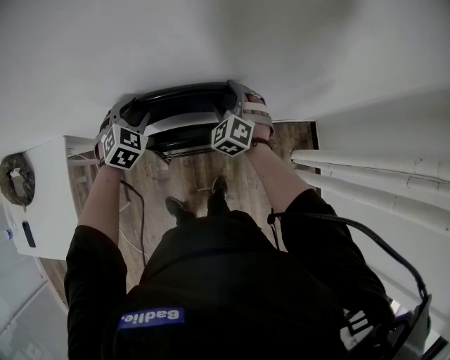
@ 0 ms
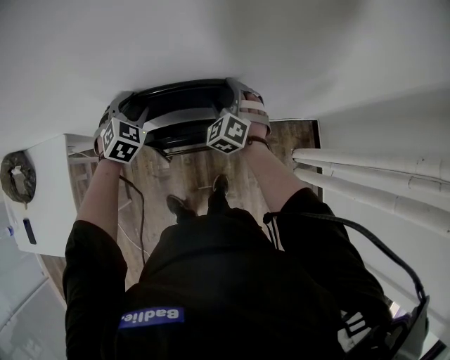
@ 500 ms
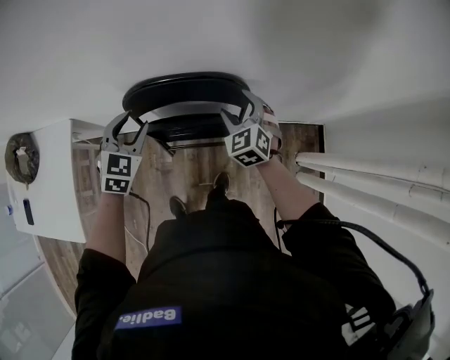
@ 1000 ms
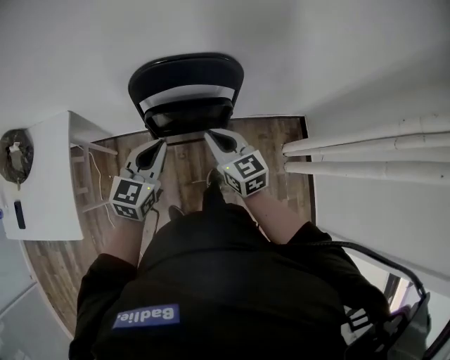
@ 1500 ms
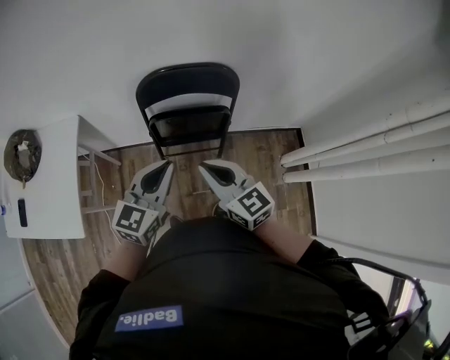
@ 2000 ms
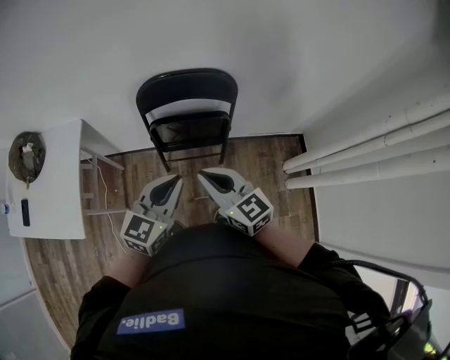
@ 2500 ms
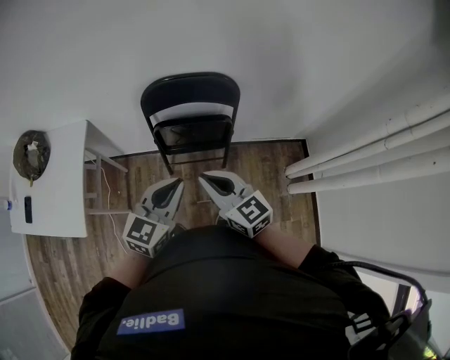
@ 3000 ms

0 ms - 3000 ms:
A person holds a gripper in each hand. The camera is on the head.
0 ms - 1500 ms: The grippers both shift backward by approximately 30 cm. The right gripper rotates around the line of its fingers by some 50 degrees, clockwise from behind, and closes; the left gripper swivels roughly 50 degrees, and closes its fingers.
1500 ms - 3000 ms: Both grippers travel together backward and upward, approximately 20 cm.

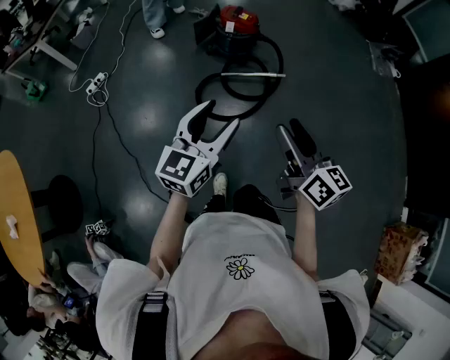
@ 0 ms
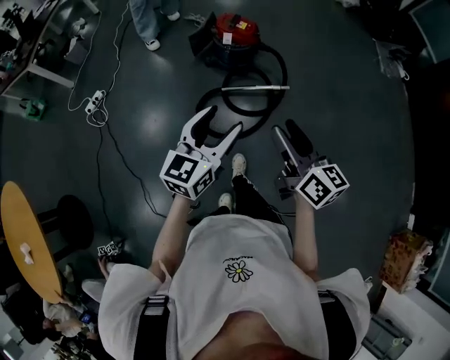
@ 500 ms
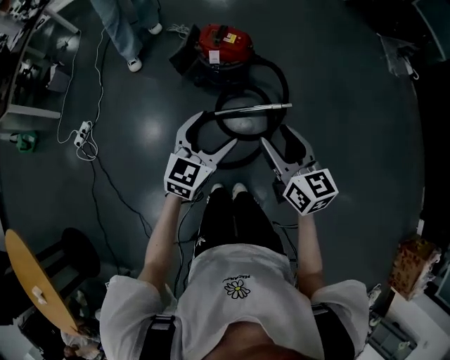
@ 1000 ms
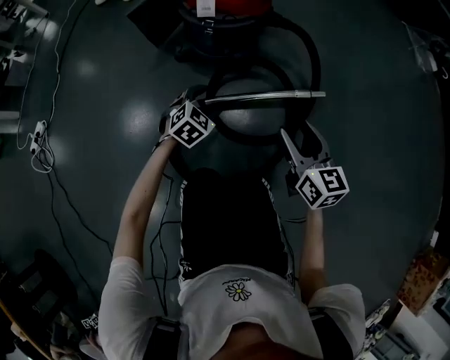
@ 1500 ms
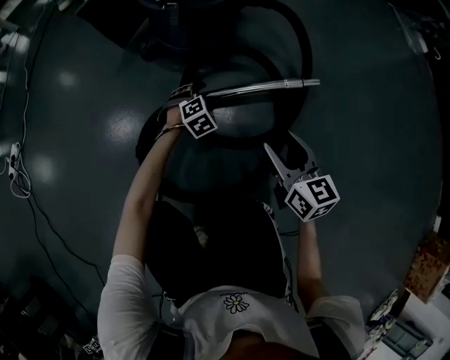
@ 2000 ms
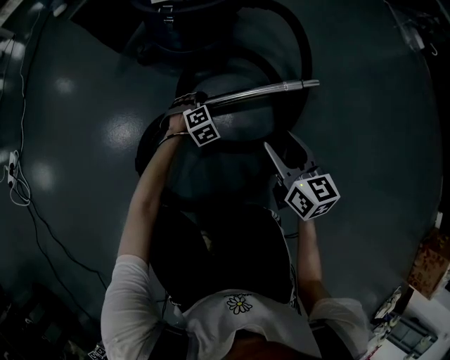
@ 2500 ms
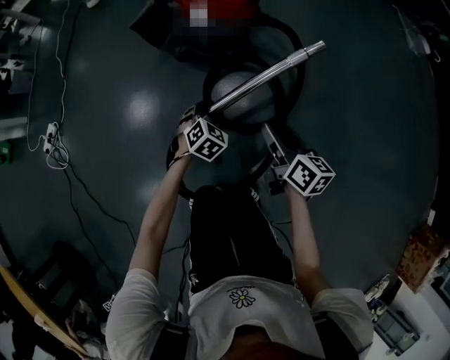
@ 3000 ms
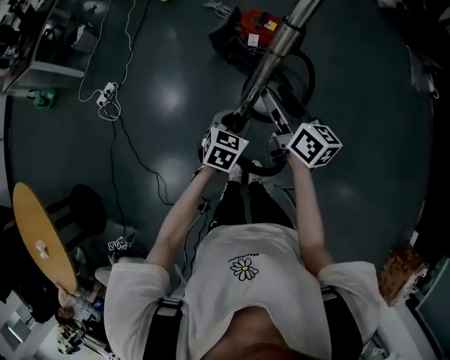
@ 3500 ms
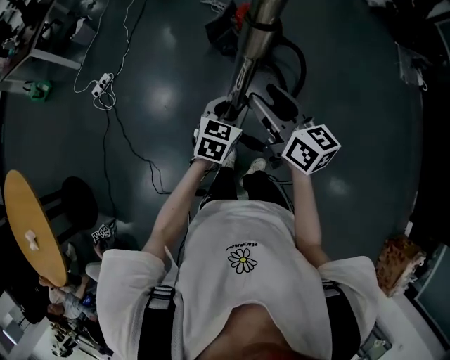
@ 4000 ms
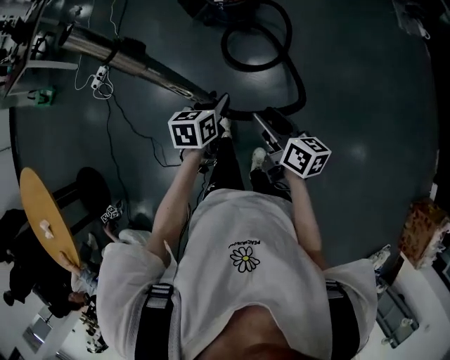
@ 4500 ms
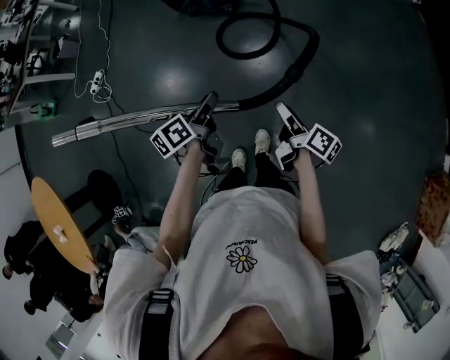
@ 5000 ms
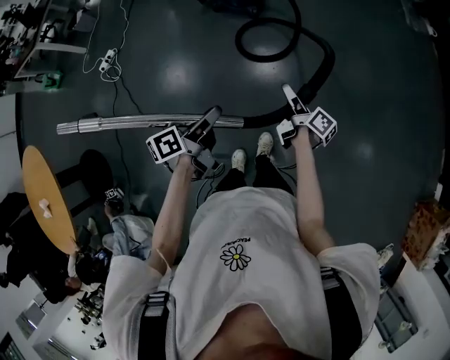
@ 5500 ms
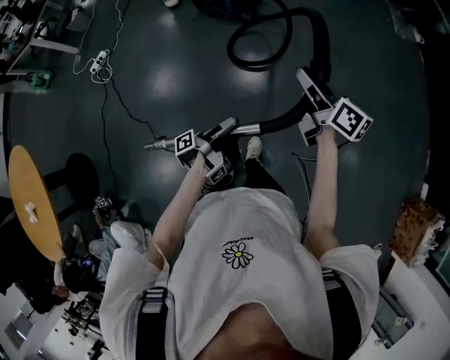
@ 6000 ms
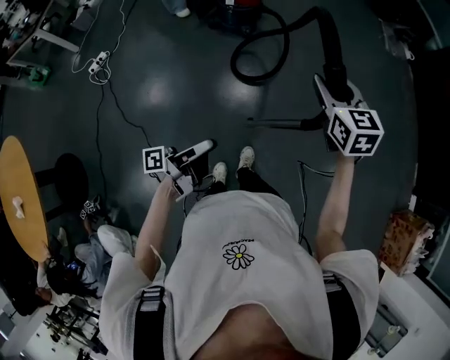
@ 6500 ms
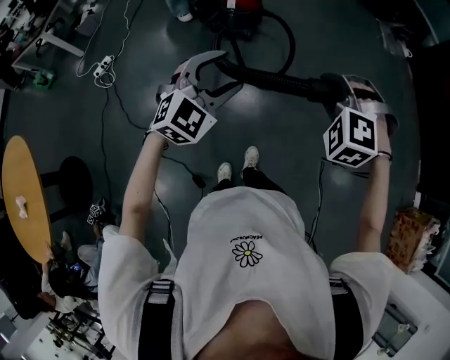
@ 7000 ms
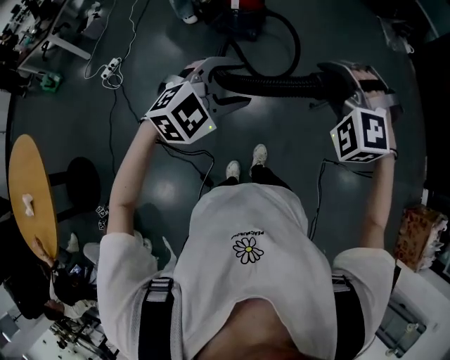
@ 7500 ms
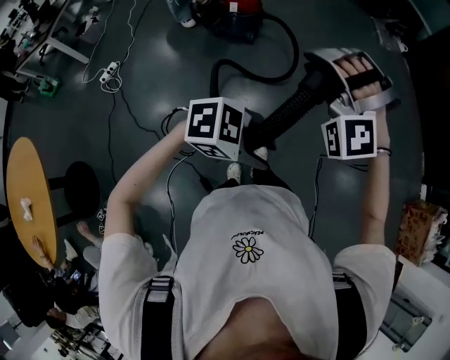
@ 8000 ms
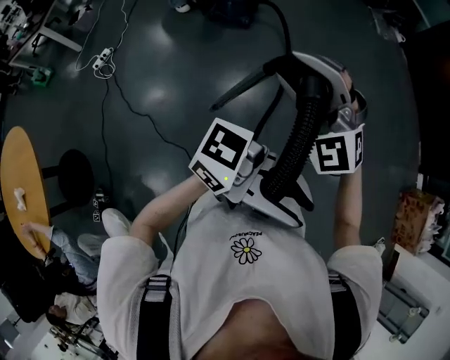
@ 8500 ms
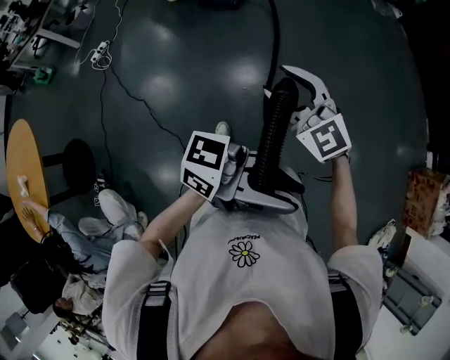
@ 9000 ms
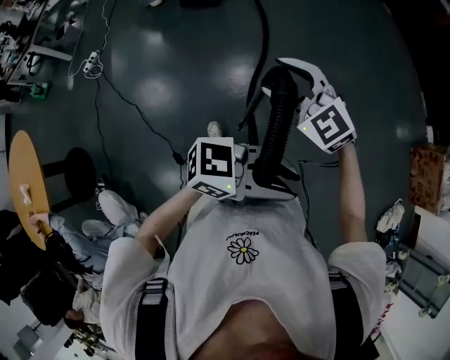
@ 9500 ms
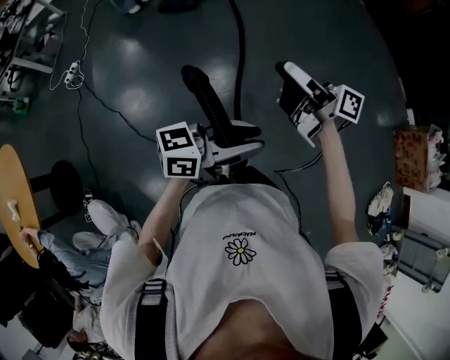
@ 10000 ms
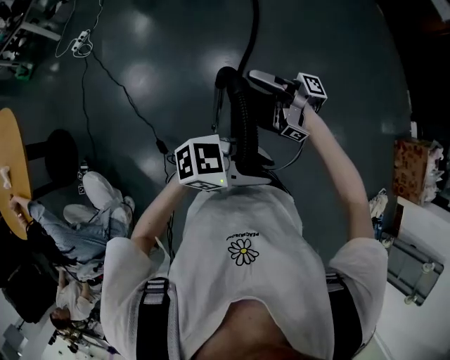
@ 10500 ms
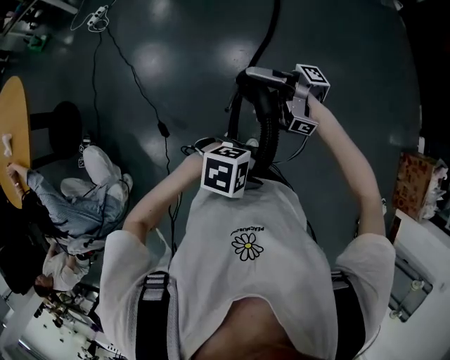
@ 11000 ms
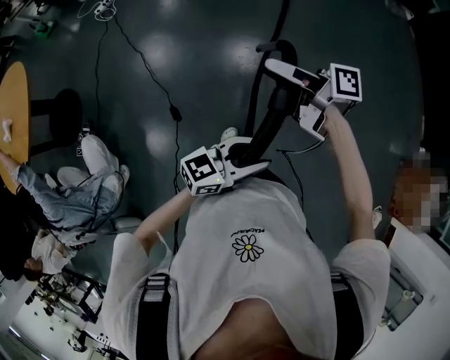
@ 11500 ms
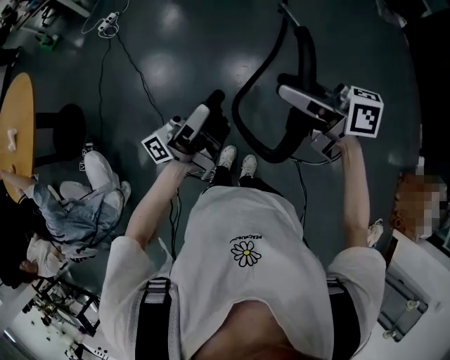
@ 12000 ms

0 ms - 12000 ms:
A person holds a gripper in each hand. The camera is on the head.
0 ms - 2000 ms: The two grippers travel together, forward, some 60 cm. Both grippers travel together downward, approximately 90 cm. The left gripper tilts its fingers approximately 50 degrees downward. The right gripper turns by some 20 degrees.
2000 ms - 4000 ms: The right gripper goes approximately 70 cm upward, and rotates some 30 degrees. Meanwhile the left gripper shifts roughly 90 cm upward and backward, twists about 50 degrees counterclockwise, seen from behind, and closes.
4000 ms - 6000 ms: The left gripper travels backward by roughly 35 cm, and rolls counterclockwise, seen from behind, by about 110 degrees; the right gripper is displaced to the right and backward by roughly 30 cm, and changes its angle by about 20 degrees.
6000 ms - 8000 ms: The left gripper travels upward by about 20 cm, and points its fingers about 30 degrees further downward; the right gripper changes place by about 25 cm, and rolls counterclockwise, seen from behind, by approximately 140 degrees.
8000 ms - 10000 ms: The left gripper moves about 15 cm upward and comes back, and tips its fingers upward by approximately 40 degrees. The right gripper changes place by roughly 40 cm, rotates around the line of its fingers by roughly 150 degrees, clockwise from behind, and opens up.
10000 ms - 12000 ms: The left gripper travels downward and back again, about 10 cm each way, and points its fingers about 40 degrees further upward. The right gripper moves approximately 10 cm downward and comes back, and turns by some 40 degrees.

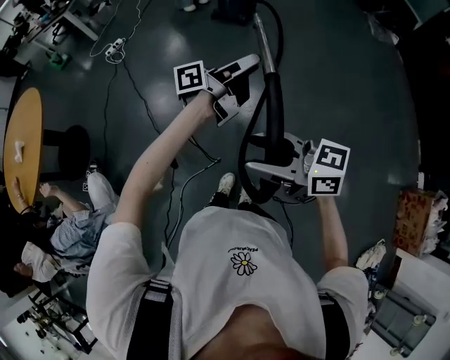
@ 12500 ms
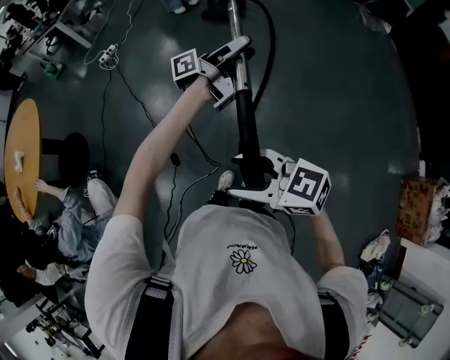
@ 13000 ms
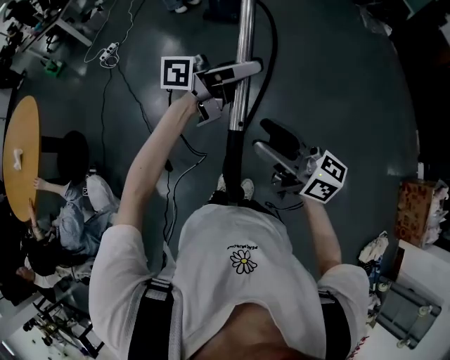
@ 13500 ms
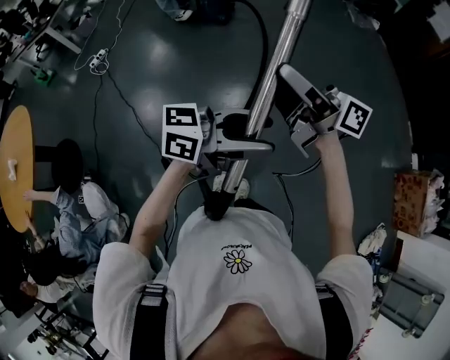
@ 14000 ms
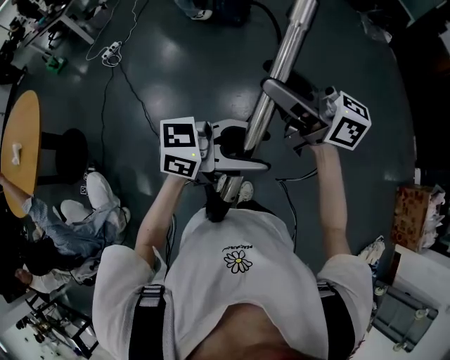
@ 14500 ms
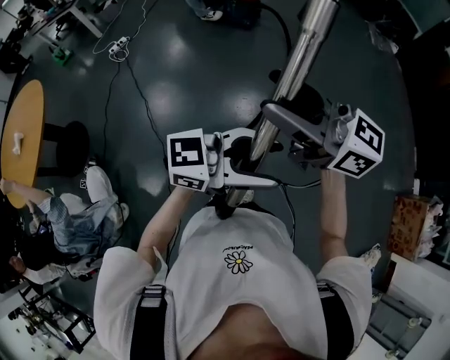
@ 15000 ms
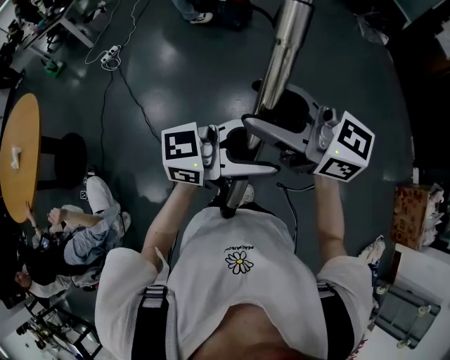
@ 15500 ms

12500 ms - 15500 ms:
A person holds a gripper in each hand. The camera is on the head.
12500 ms - 14000 ms: The right gripper moves roughly 20 cm, and turns by roughly 40 degrees, while the left gripper ends up some 25 cm from where it was, and swivels some 50 degrees.
14000 ms - 15500 ms: The right gripper moves roughly 15 cm, and rotates some 40 degrees. The left gripper shifts by about 5 cm.

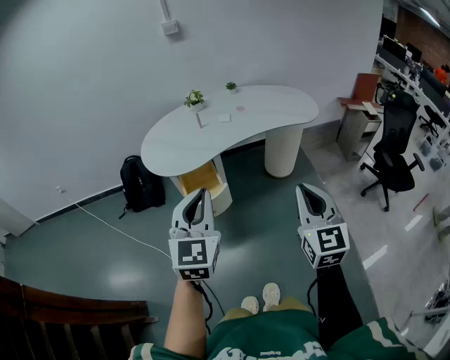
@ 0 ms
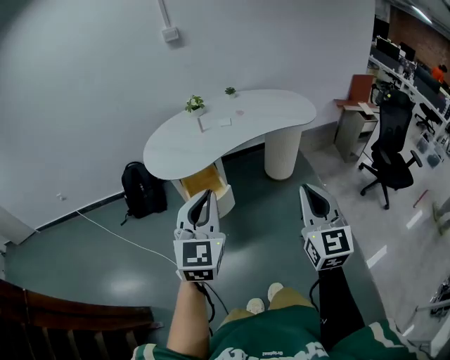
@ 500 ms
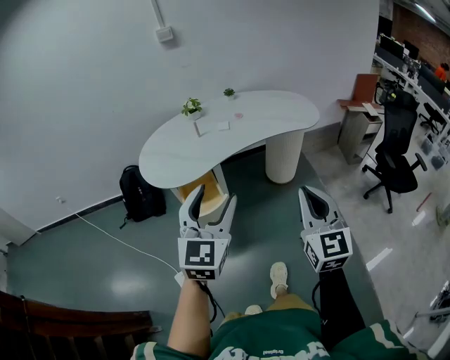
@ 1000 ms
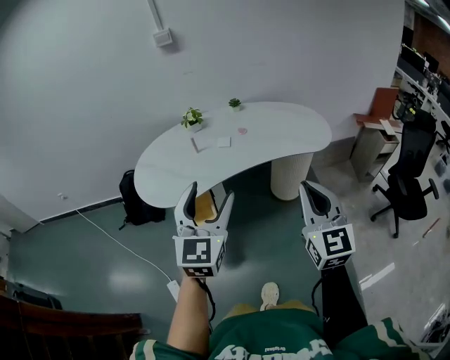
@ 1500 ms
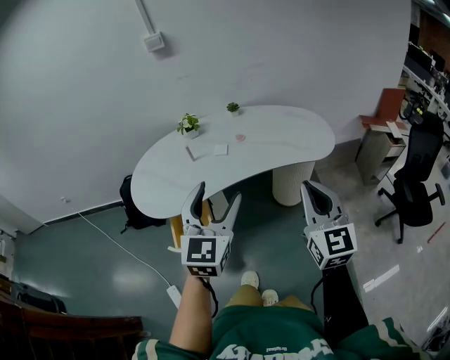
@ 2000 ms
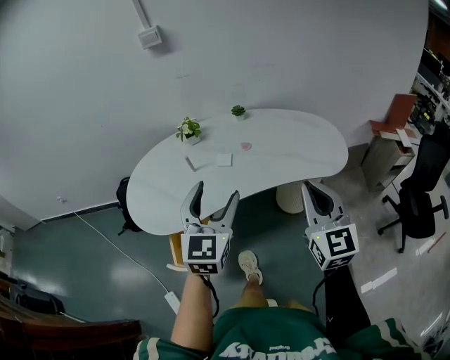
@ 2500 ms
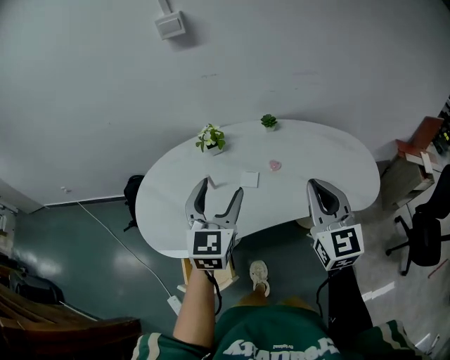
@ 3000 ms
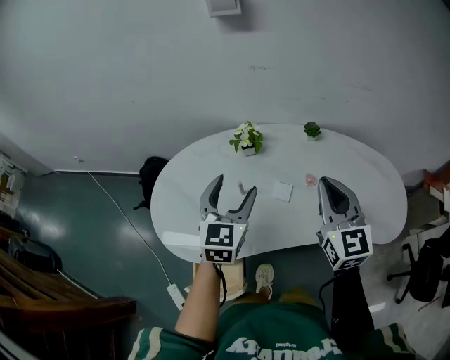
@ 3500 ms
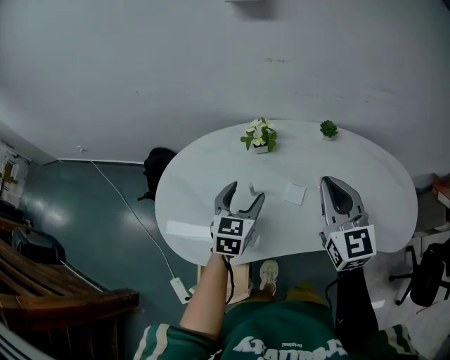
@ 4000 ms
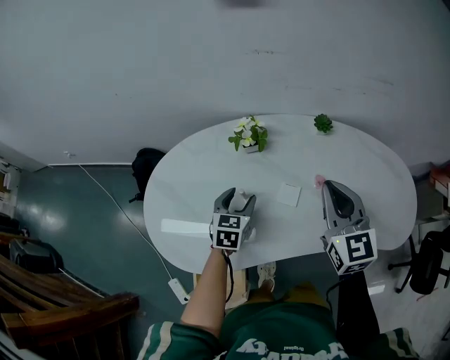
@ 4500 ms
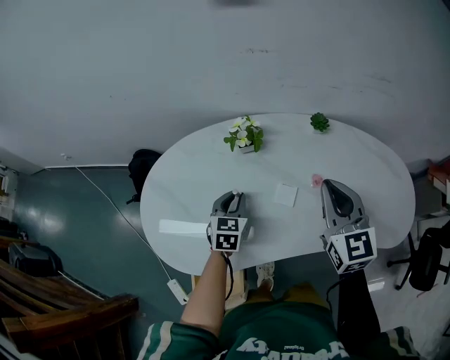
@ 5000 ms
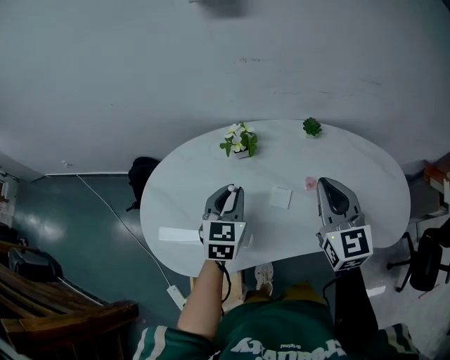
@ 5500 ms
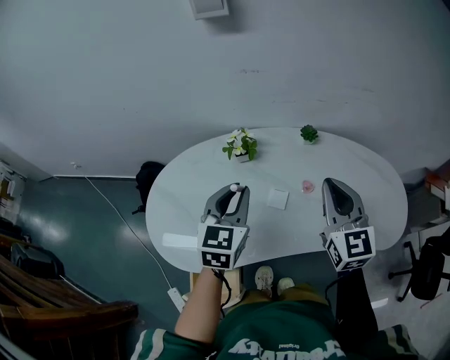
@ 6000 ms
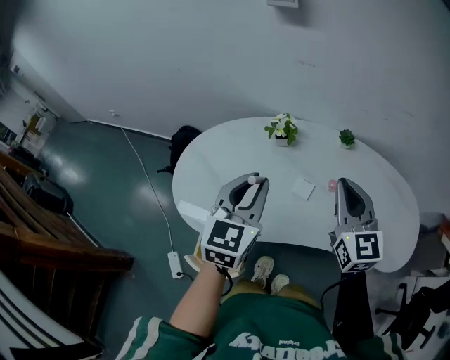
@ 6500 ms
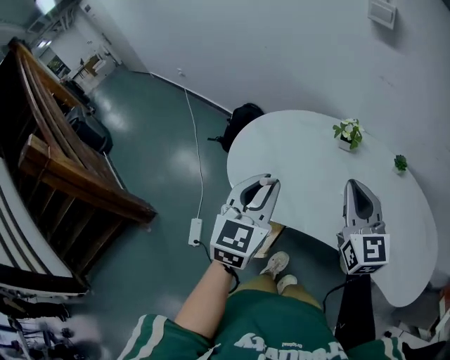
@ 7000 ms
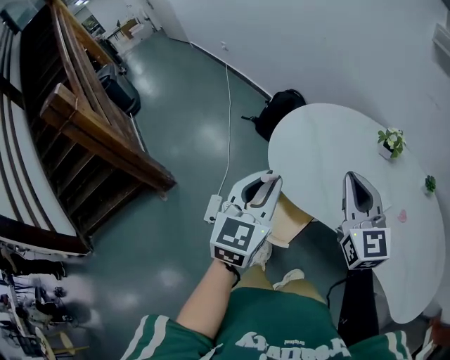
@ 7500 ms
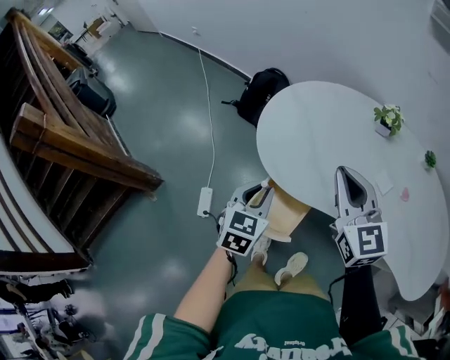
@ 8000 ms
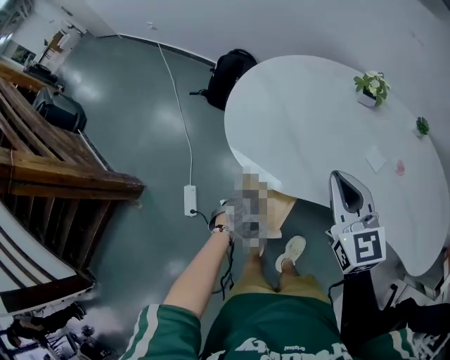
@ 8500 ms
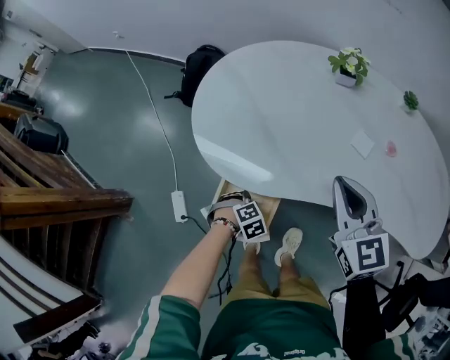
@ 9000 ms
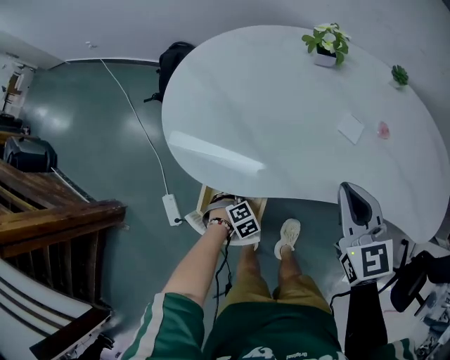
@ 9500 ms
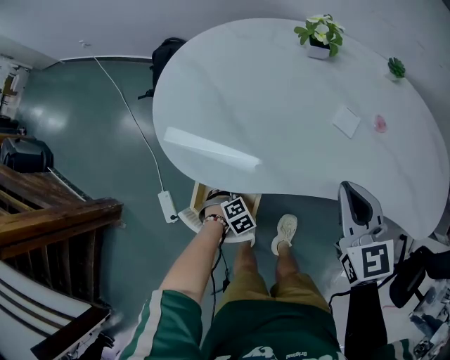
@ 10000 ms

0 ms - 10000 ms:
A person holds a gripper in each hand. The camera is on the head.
0 ms - 2000 ms: The right gripper shifts some 25 cm forward. Meanwhile the left gripper shifts some 30 cm forward and to the right, and opens up.
2000 ms - 4000 ms: The two grippers travel together, forward and to the left, roughly 50 cm. The right gripper changes its angle by roughly 20 degrees; the left gripper heads downward, covering about 20 cm, and swivels about 30 degrees.
4000 ms - 6000 ms: The right gripper goes roughly 5 cm to the right; the left gripper heads upward, covering approximately 10 cm, and closes up.
6000 ms - 8000 ms: The right gripper moves approximately 35 cm, and changes its angle by some 40 degrees; the left gripper shifts by approximately 40 cm, and rotates approximately 30 degrees.
8000 ms - 10000 ms: The left gripper heads downward, covering about 35 cm, angles its fingers downward, by roughly 50 degrees, and opens up, while the right gripper ends up about 25 cm from where it was, and turns by about 30 degrees.
